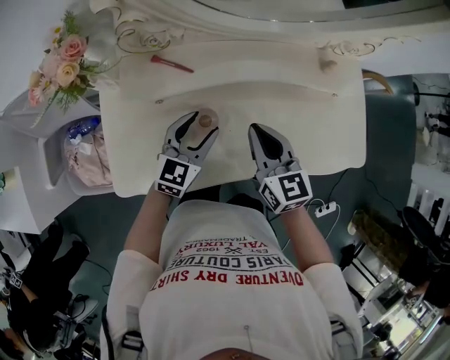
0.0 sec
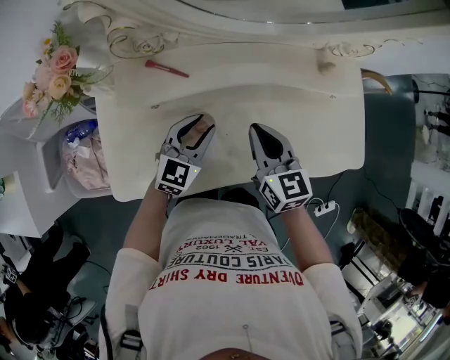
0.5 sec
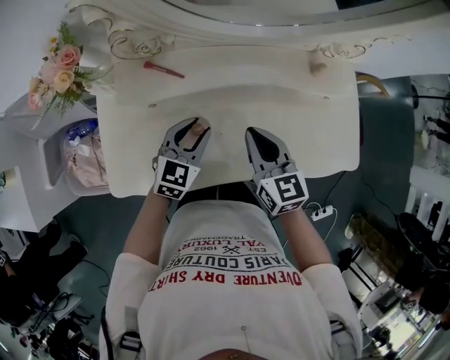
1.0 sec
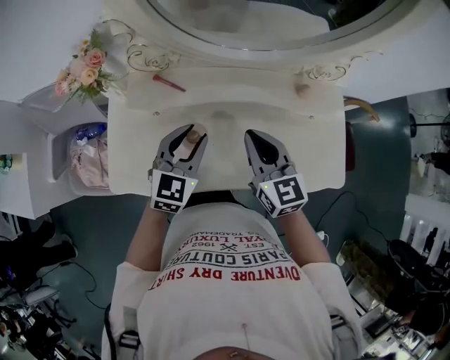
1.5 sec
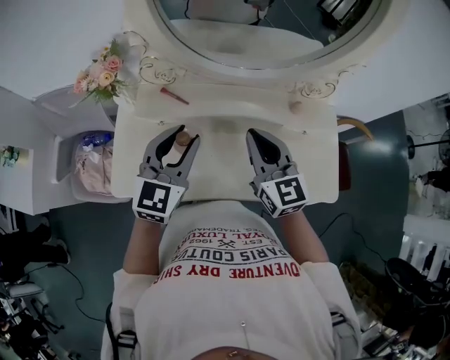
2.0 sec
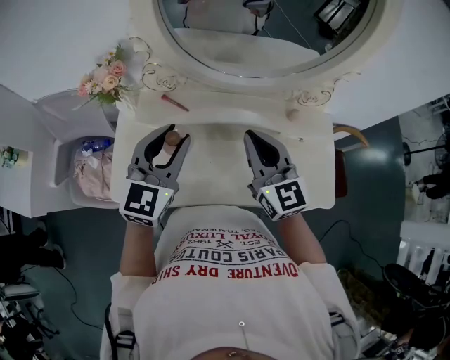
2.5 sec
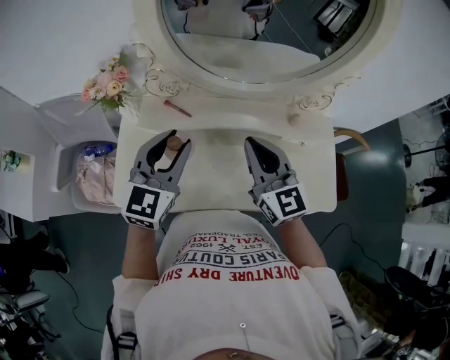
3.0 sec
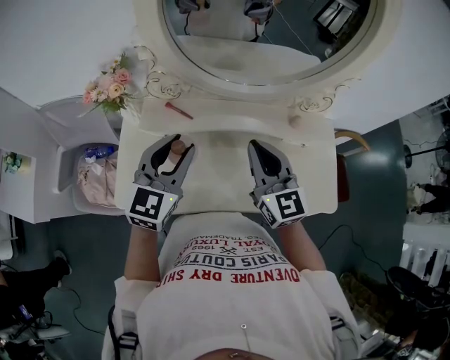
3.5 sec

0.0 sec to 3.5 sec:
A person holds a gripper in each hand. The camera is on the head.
0.0 sec to 2.0 sec: The left gripper shifts about 25 cm upward, and changes its angle by some 20 degrees. The right gripper heads upward, covering approximately 15 cm.
2.0 sec to 3.5 sec: The grippers stay close to where they were, moving slightly.

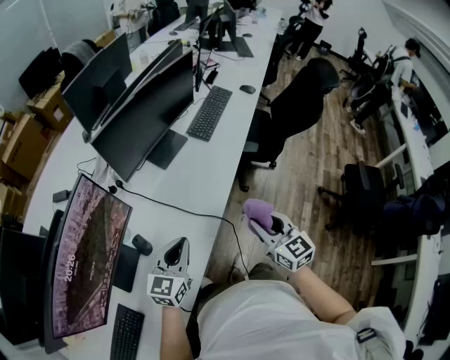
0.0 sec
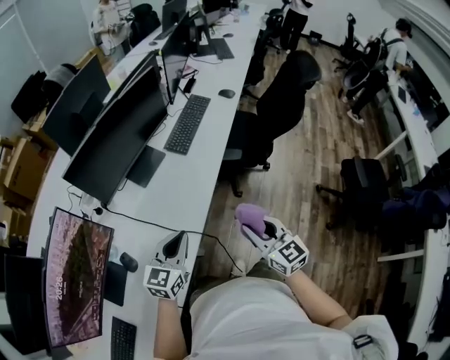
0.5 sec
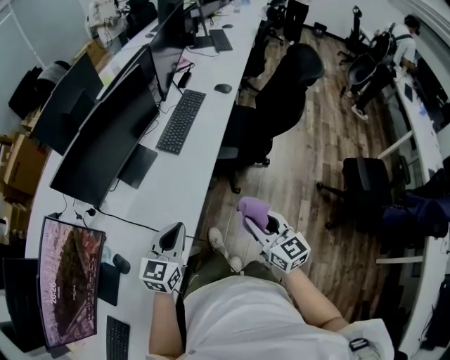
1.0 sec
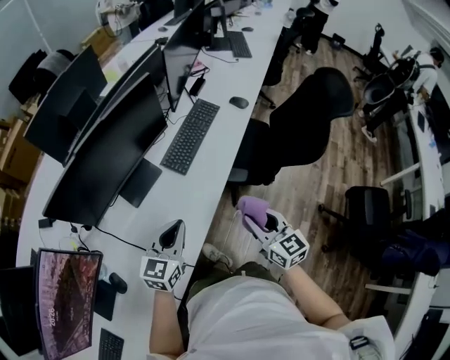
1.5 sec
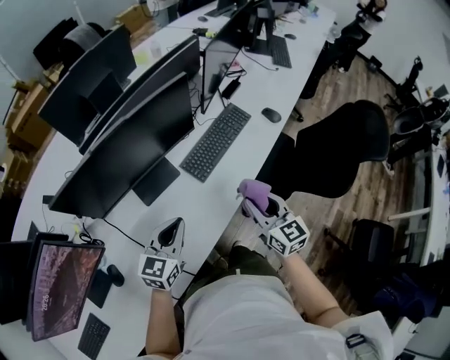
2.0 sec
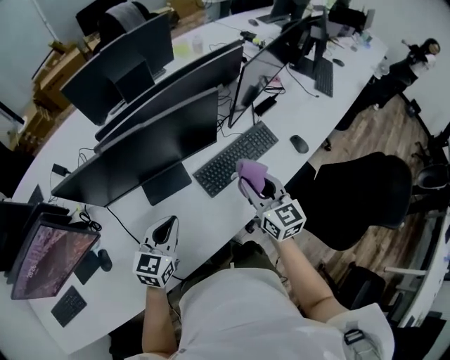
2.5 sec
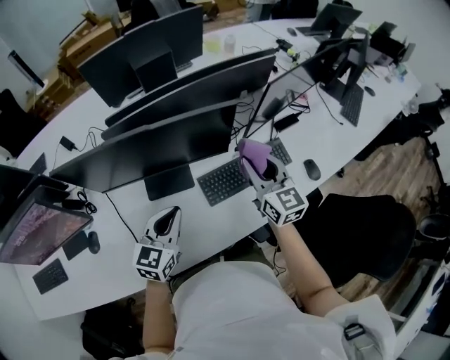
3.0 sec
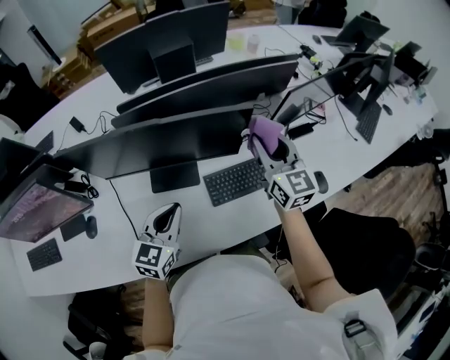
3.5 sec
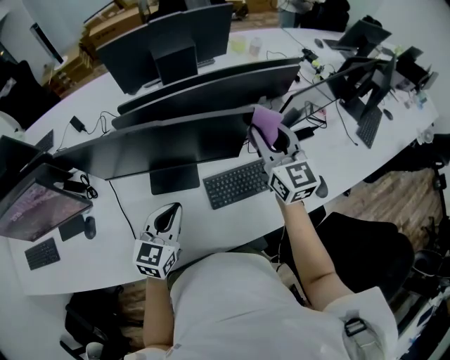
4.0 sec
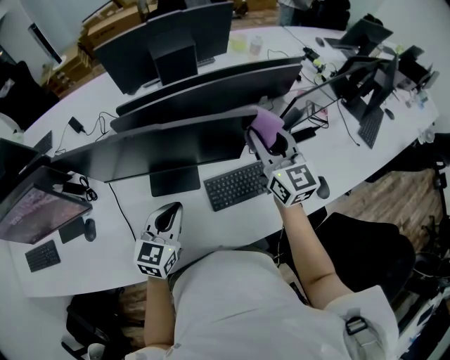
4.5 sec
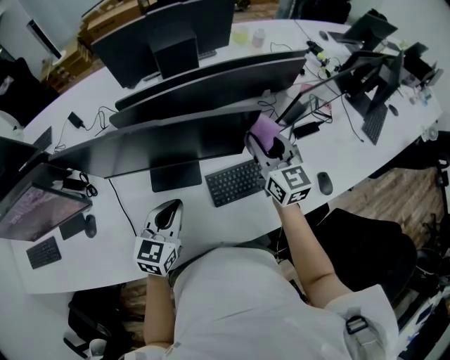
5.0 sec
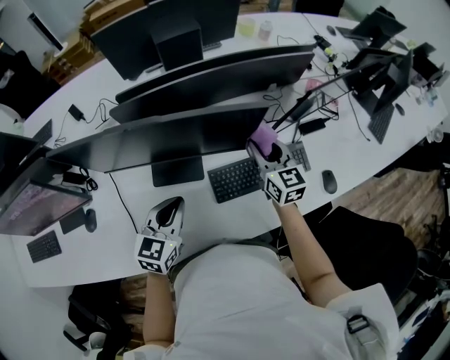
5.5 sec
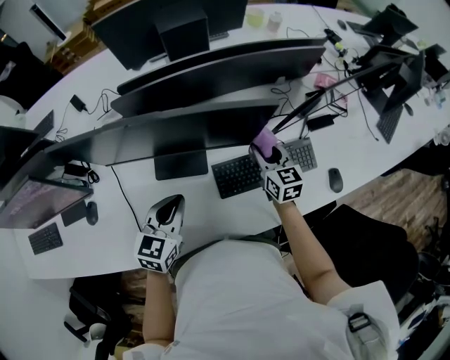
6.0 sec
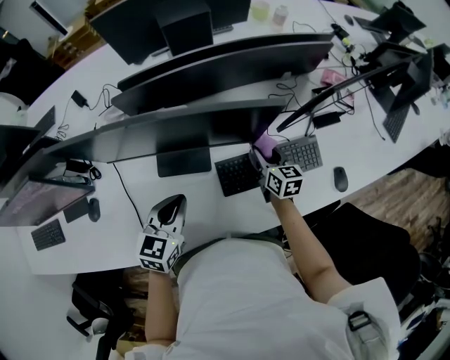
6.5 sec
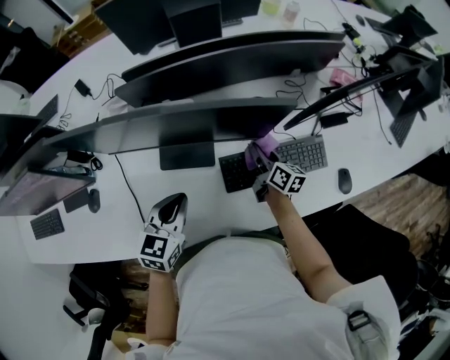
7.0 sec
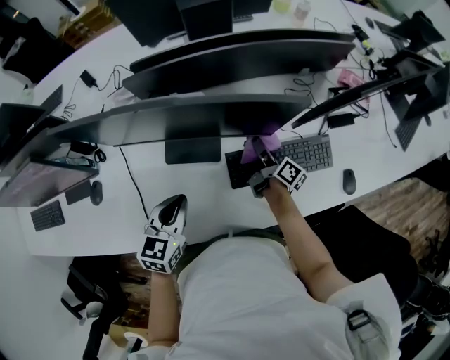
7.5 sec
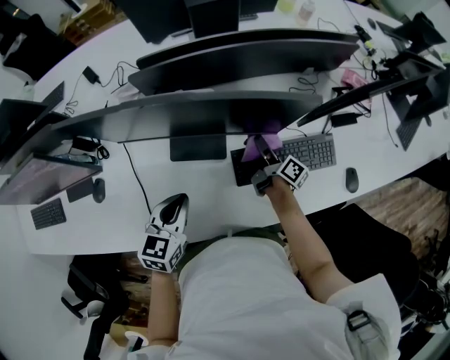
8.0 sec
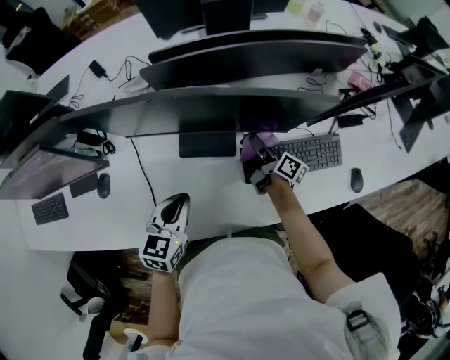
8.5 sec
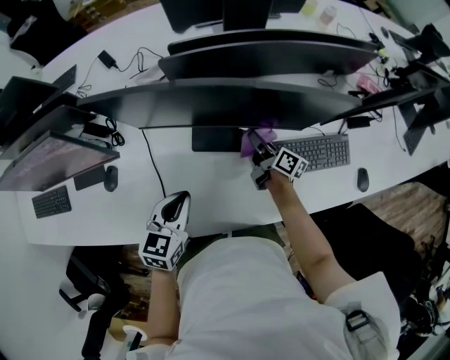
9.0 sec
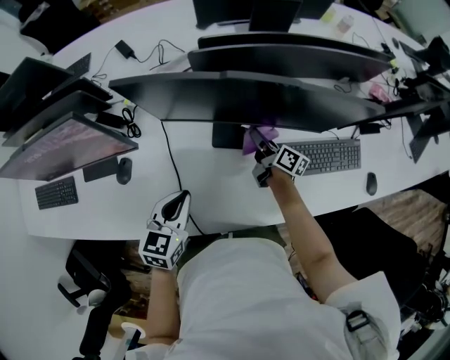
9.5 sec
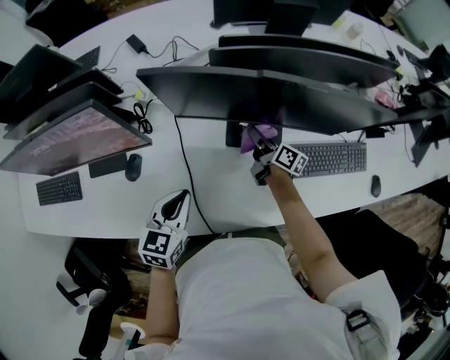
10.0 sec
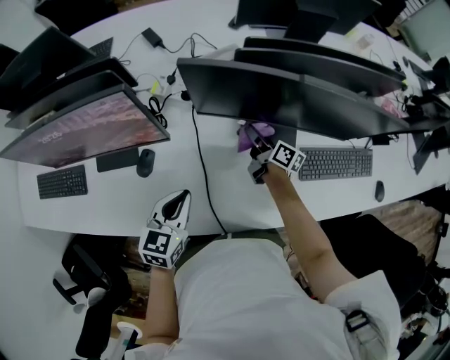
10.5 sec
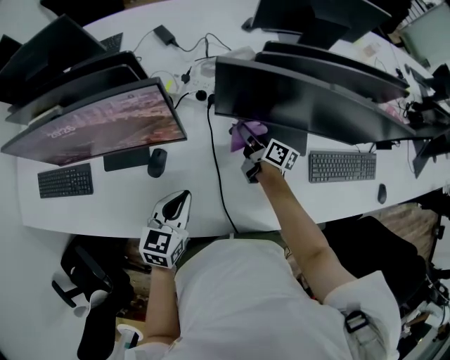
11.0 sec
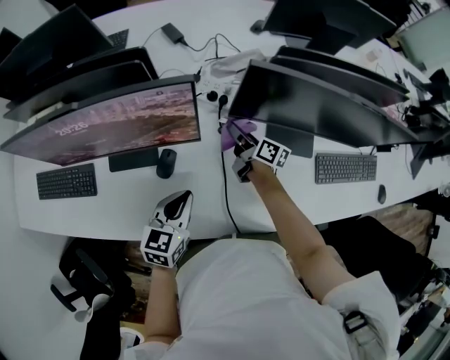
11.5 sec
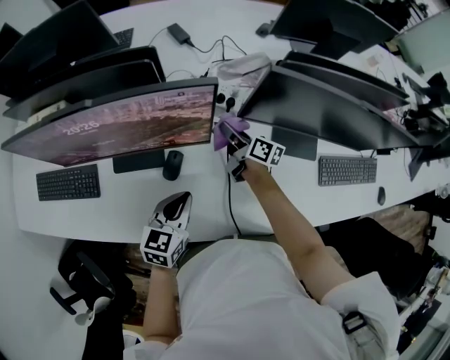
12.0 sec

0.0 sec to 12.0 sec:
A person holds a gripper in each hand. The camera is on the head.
0.0 sec to 2.0 sec: The left gripper heads forward and to the right, covering some 35 cm, while the right gripper goes some 35 cm forward.
2.0 sec to 4.0 sec: The left gripper moves some 15 cm, and changes its angle by about 30 degrees, while the right gripper changes place by some 40 cm, and changes its angle by some 30 degrees.
4.0 sec to 6.0 sec: The right gripper travels downward by about 20 cm, and rotates roughly 20 degrees.
6.0 sec to 8.0 sec: The right gripper goes some 10 cm downward, and twists about 70 degrees clockwise, seen from behind. Meanwhile the left gripper ends up about 5 cm from where it was.
8.0 sec to 10.0 sec: Both grippers move to the left, roughly 20 cm.
10.0 sec to 12.0 sec: The left gripper moves to the left, roughly 20 cm, while the right gripper shifts some 30 cm to the left.

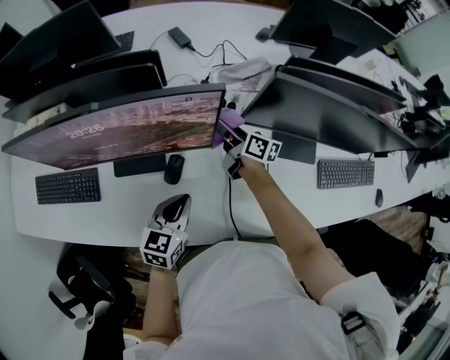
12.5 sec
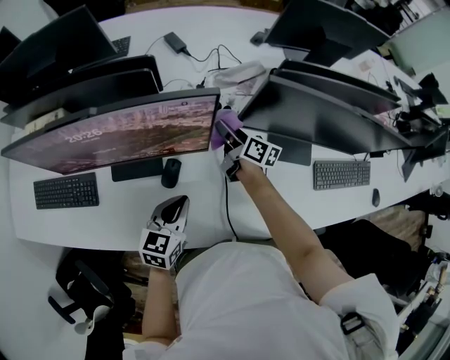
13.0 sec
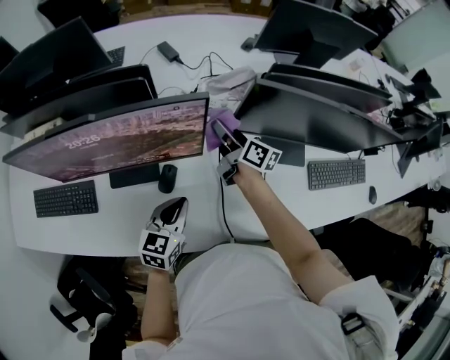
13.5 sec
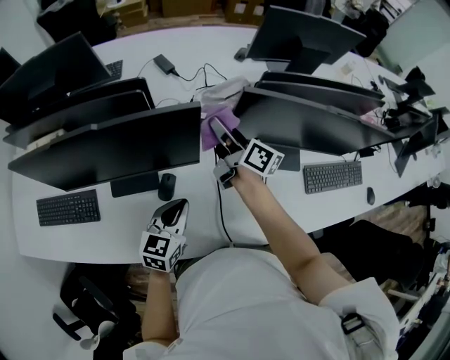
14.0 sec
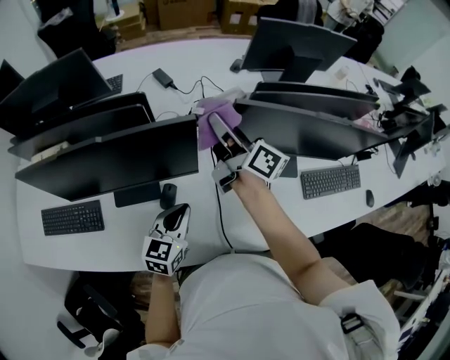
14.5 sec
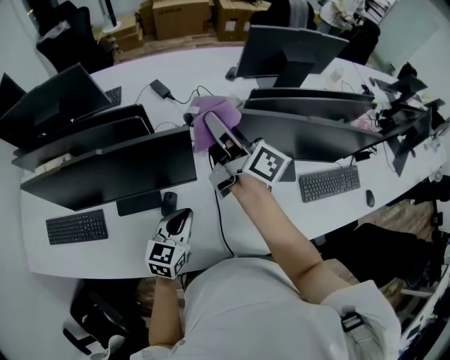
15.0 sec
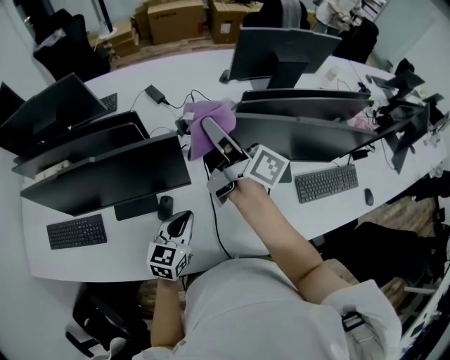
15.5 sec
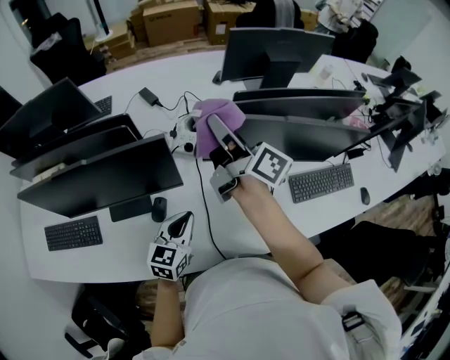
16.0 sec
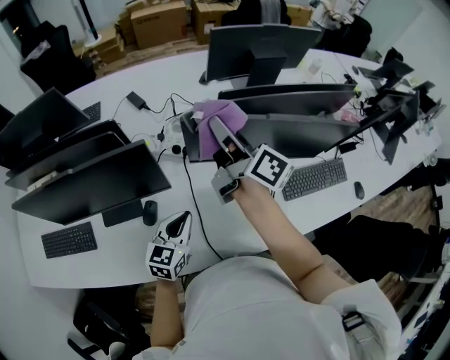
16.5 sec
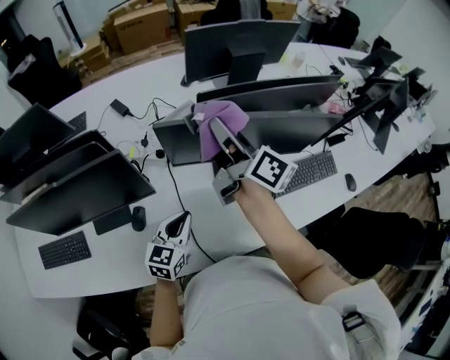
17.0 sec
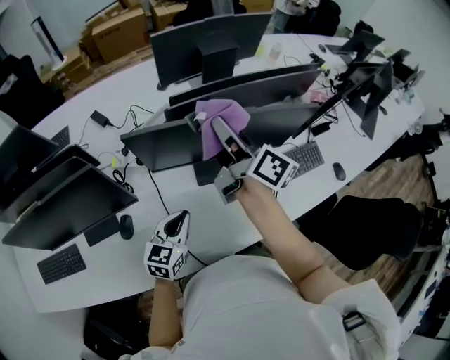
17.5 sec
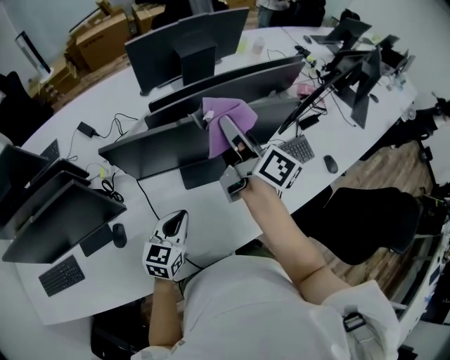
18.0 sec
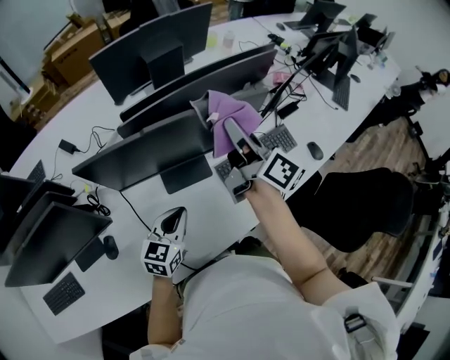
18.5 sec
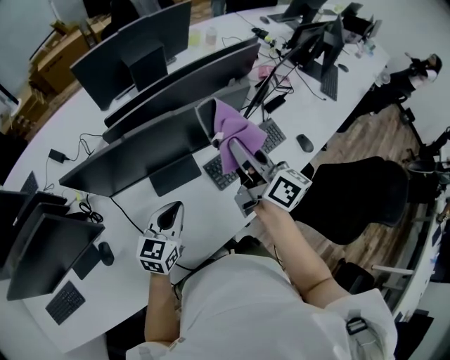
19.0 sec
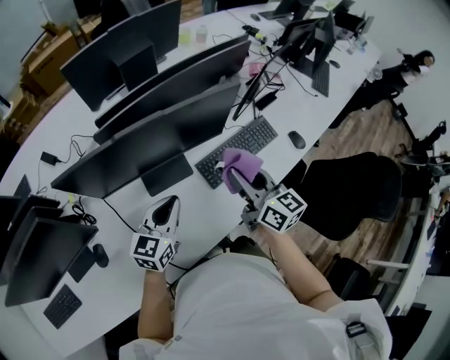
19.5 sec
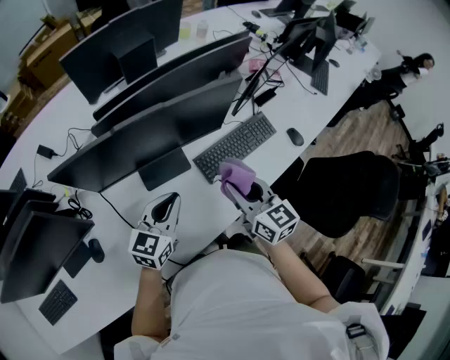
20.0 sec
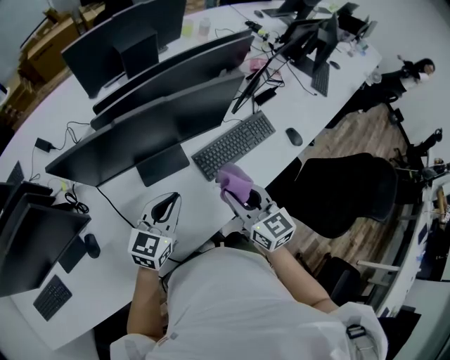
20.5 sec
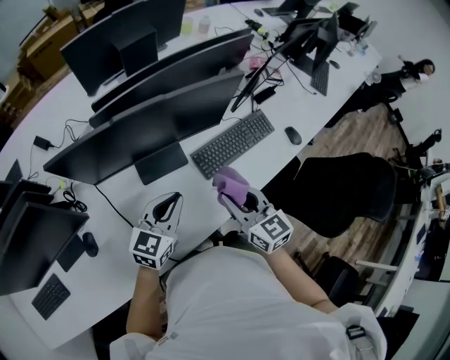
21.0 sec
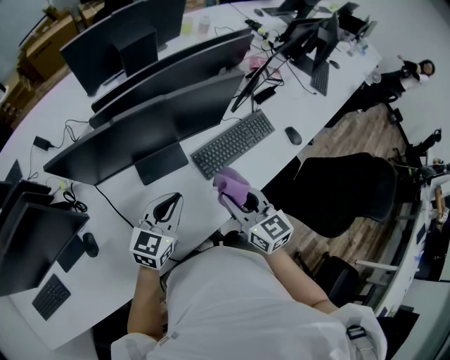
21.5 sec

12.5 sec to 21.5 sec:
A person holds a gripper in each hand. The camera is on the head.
12.5 sec to 14.5 sec: The left gripper moves upward, about 5 cm; the right gripper shifts approximately 25 cm upward, and changes its angle by roughly 20 degrees.
14.5 sec to 17.0 sec: Both grippers travel together to the right, approximately 15 cm.
17.0 sec to 19.5 sec: The left gripper travels to the right and forward by about 20 cm, and swivels roughly 20 degrees. Meanwhile the right gripper goes some 30 cm to the right, and turns by about 40 degrees.
19.5 sec to 21.5 sec: The right gripper is displaced backward and downward by approximately 10 cm, and turns by some 20 degrees.

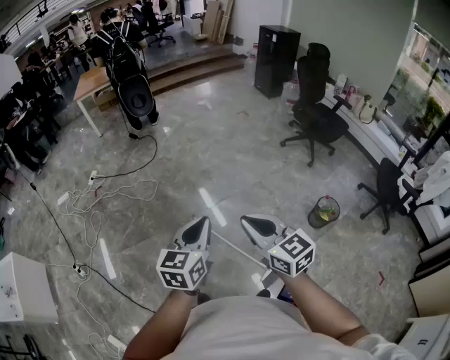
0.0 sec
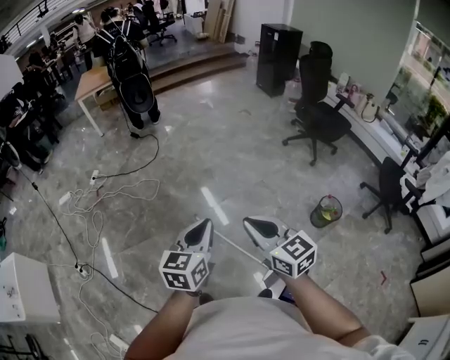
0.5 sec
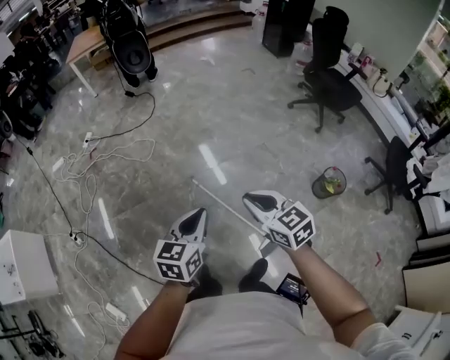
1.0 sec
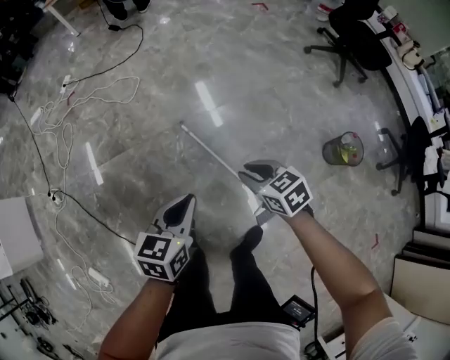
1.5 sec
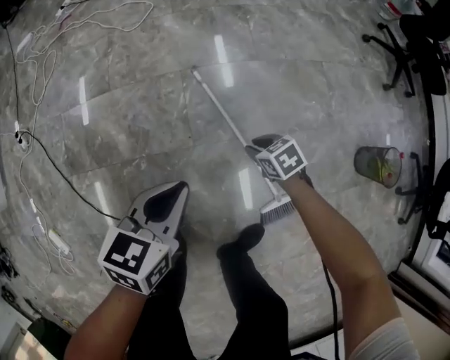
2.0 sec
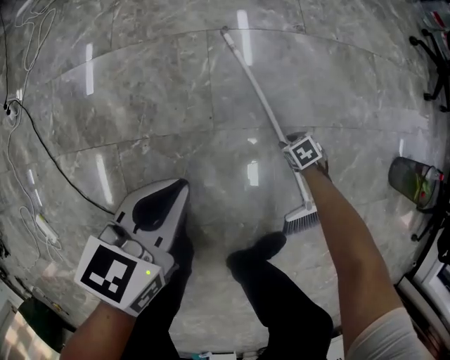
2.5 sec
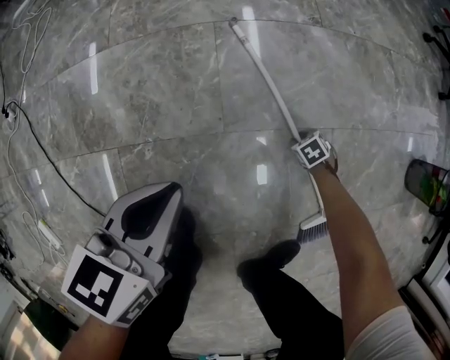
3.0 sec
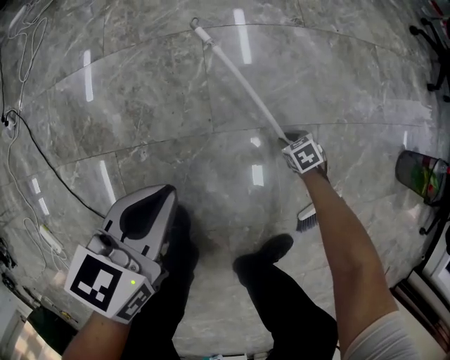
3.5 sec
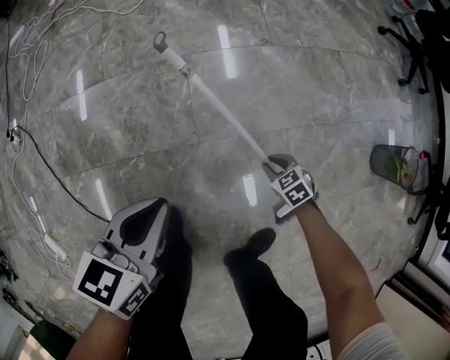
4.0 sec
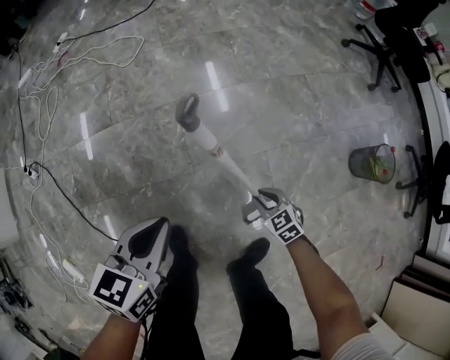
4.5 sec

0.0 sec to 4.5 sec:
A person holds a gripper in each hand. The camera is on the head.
0.0 sec to 2.0 sec: Both grippers travel together downward, some 70 cm. The right gripper tilts its fingers about 50 degrees downward, and opens up, while the left gripper swivels roughly 30 degrees.
2.0 sec to 4.5 sec: The right gripper goes downward and returns, some 40 cm each way, and swivels roughly 20 degrees; the left gripper goes downward and returns, some 20 cm each way.
